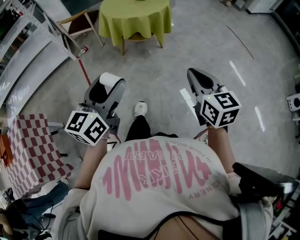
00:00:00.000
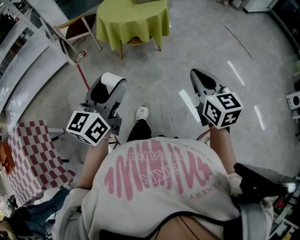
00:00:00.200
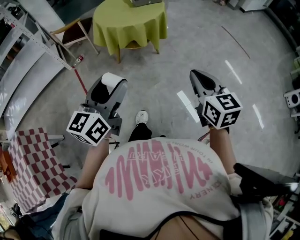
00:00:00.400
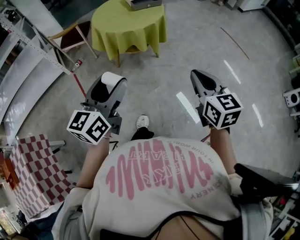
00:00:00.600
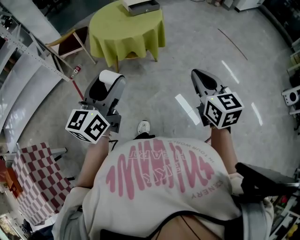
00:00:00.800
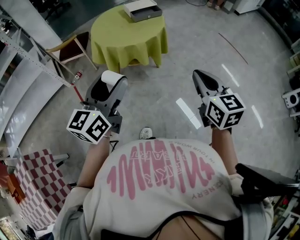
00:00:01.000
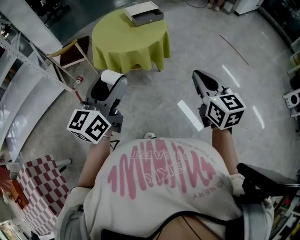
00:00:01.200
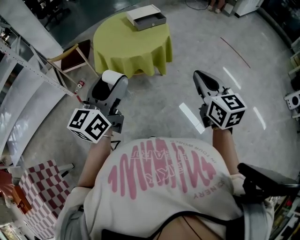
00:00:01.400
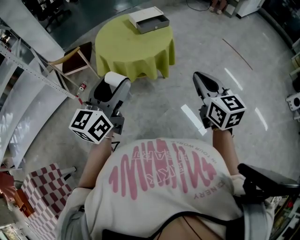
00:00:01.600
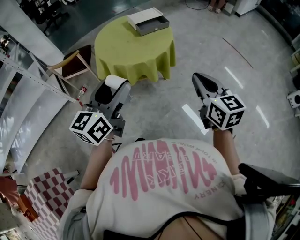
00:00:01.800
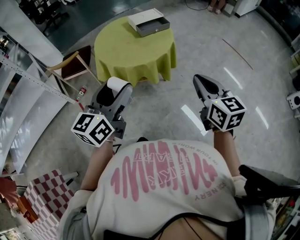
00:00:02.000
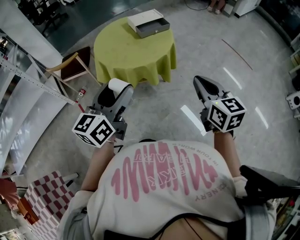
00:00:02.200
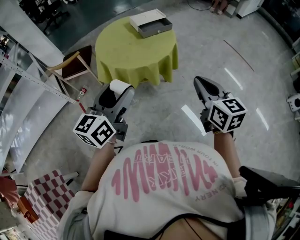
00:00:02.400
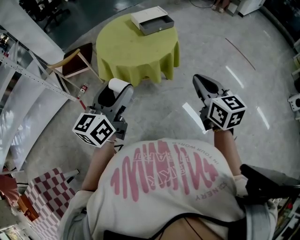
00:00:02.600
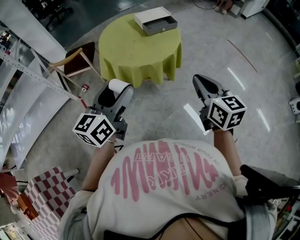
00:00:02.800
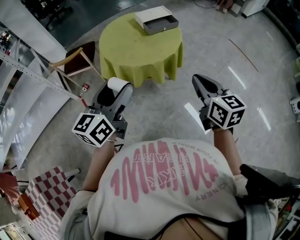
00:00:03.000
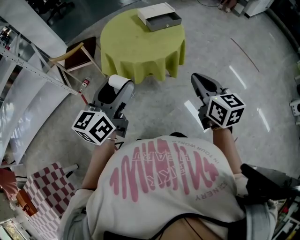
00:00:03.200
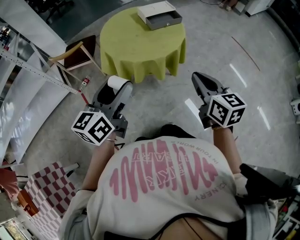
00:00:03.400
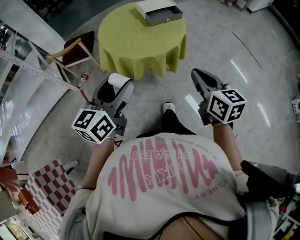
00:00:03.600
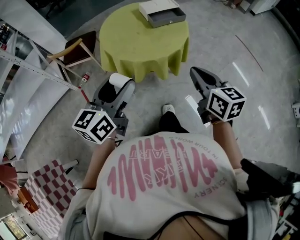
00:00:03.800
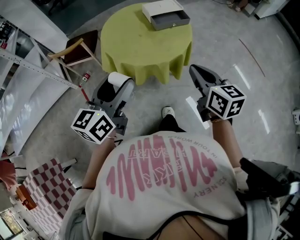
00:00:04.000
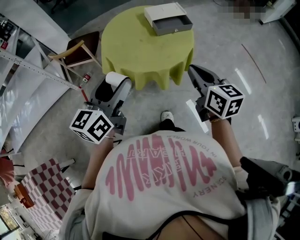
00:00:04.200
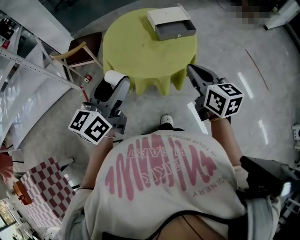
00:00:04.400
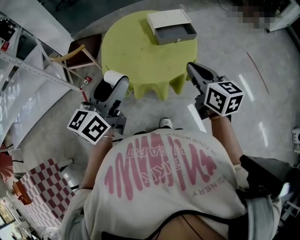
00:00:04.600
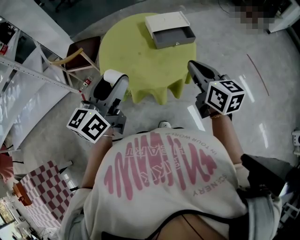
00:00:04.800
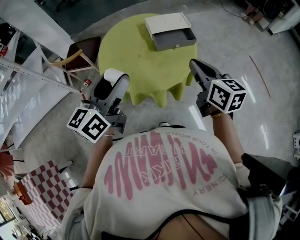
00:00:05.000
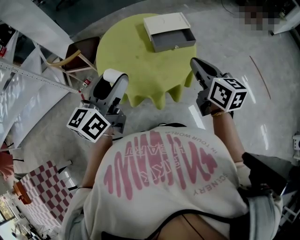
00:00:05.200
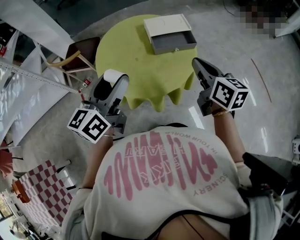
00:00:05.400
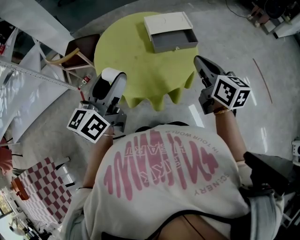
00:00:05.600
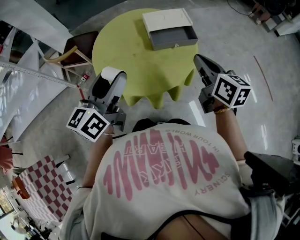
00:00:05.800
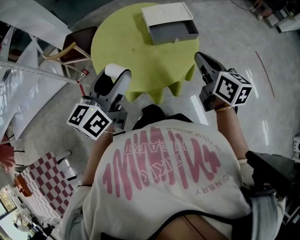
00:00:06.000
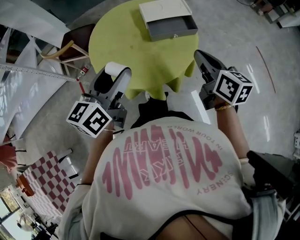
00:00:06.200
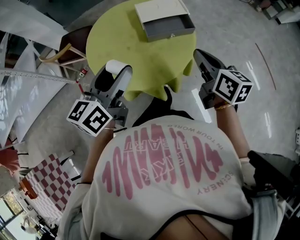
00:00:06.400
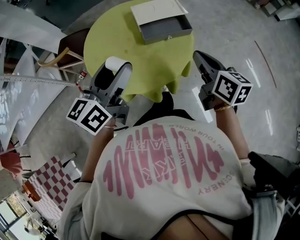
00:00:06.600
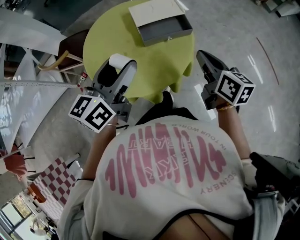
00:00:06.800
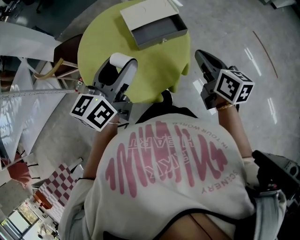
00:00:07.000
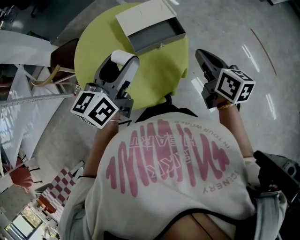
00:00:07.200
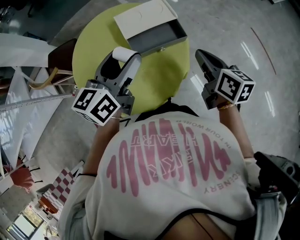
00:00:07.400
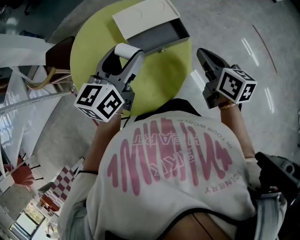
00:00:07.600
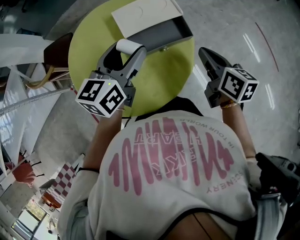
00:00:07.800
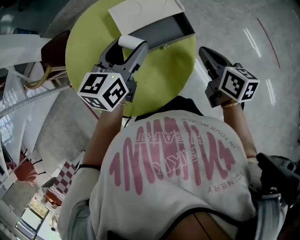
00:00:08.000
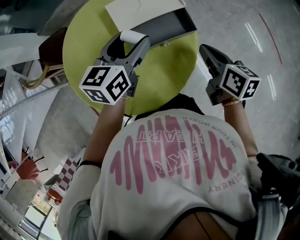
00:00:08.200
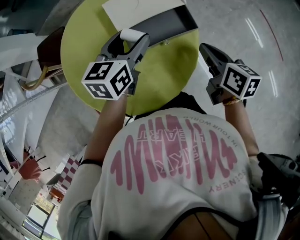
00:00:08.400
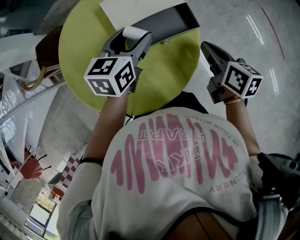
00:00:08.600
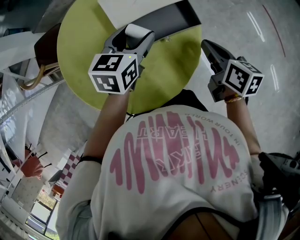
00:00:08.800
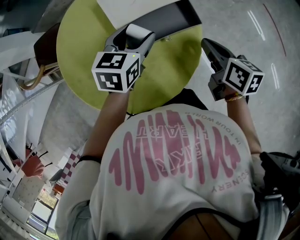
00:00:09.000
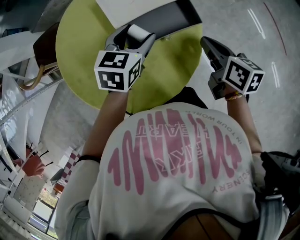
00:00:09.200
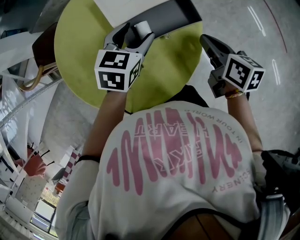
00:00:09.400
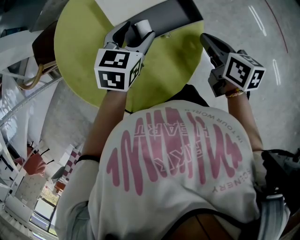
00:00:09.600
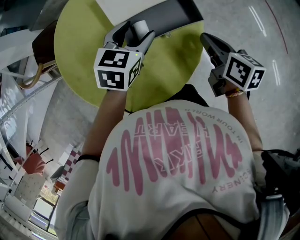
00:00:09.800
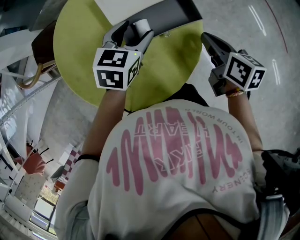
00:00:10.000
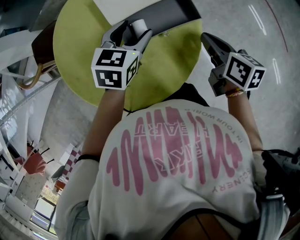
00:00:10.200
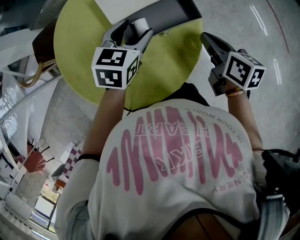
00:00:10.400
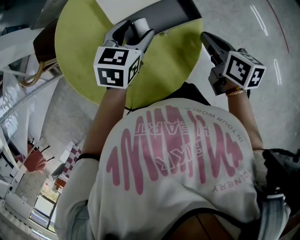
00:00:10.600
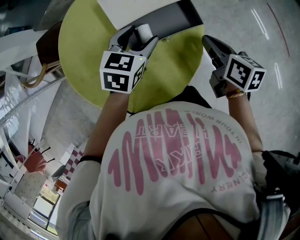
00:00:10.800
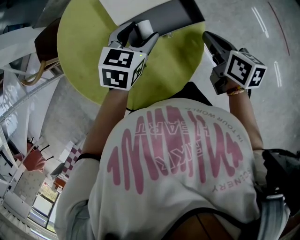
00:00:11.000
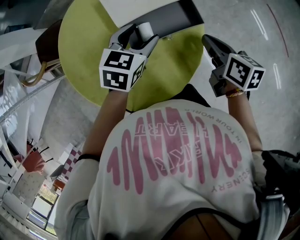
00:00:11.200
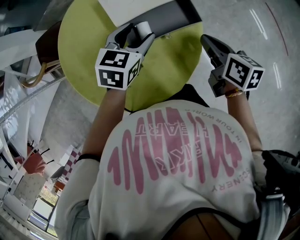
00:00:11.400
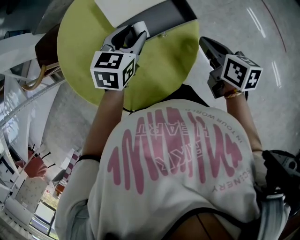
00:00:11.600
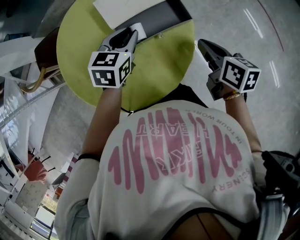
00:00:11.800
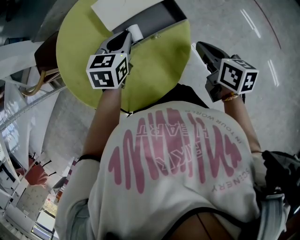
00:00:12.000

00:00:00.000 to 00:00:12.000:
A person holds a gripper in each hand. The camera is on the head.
00:00:00.000 to 00:00:01.600: Both grippers move forward, roughly 30 cm.
00:00:01.600 to 00:00:03.000: The two grippers go about 5 cm forward.
00:00:03.000 to 00:00:04.400: Both grippers travel together forward, roughly 15 cm.
00:00:04.400 to 00:00:06.000: Both grippers move forward and to the right, about 15 cm.
00:00:06.000 to 00:00:07.600: The left gripper goes roughly 25 cm forward and to the right; the right gripper goes some 20 cm forward, downward and to the right.
00:00:07.600 to 00:00:09.000: The right gripper is displaced downward by some 10 cm; the left gripper moves downward and forward, roughly 15 cm, and rotates about 30 degrees.
00:00:09.000 to 00:00:10.400: The grippers move only a little.
00:00:10.400 to 00:00:12.000: The left gripper closes up.

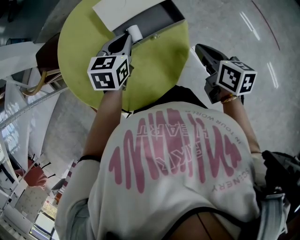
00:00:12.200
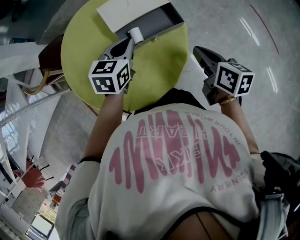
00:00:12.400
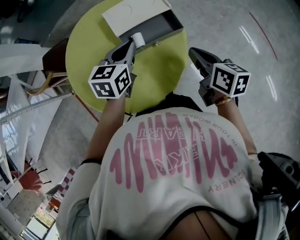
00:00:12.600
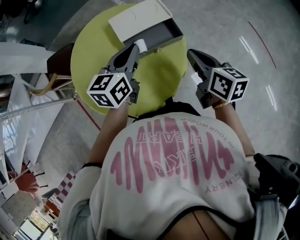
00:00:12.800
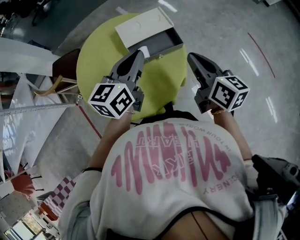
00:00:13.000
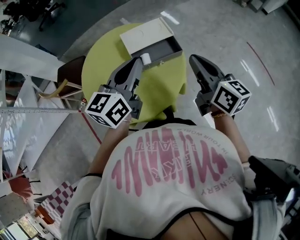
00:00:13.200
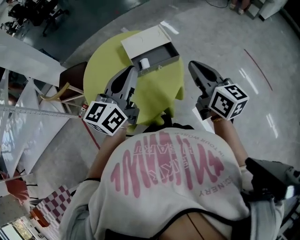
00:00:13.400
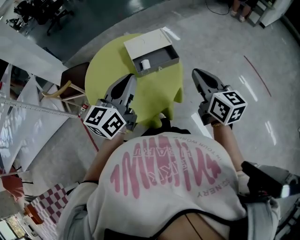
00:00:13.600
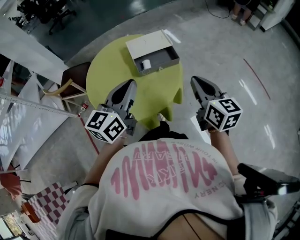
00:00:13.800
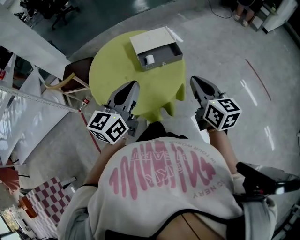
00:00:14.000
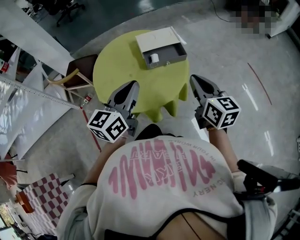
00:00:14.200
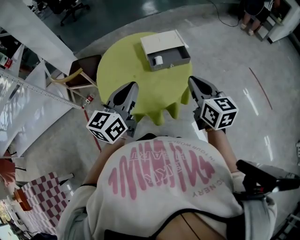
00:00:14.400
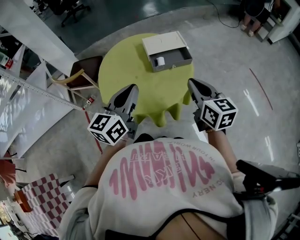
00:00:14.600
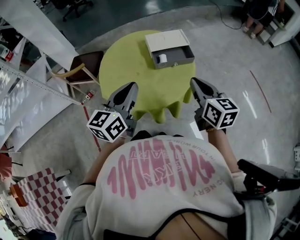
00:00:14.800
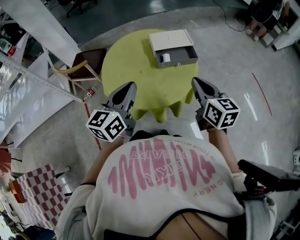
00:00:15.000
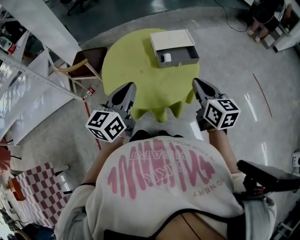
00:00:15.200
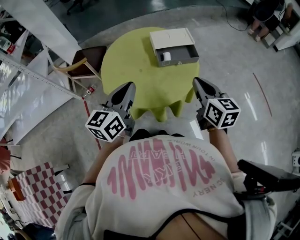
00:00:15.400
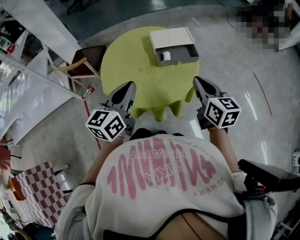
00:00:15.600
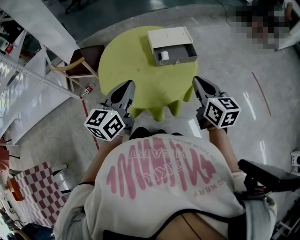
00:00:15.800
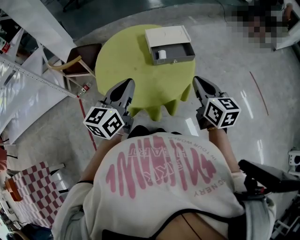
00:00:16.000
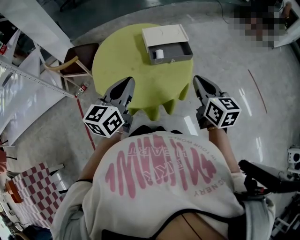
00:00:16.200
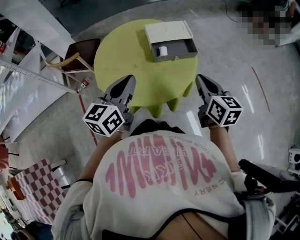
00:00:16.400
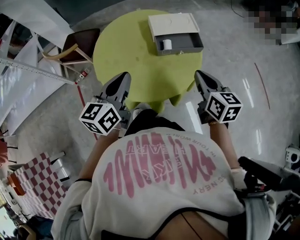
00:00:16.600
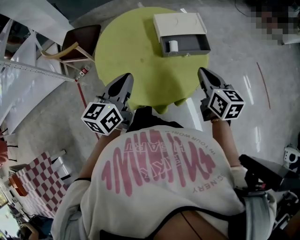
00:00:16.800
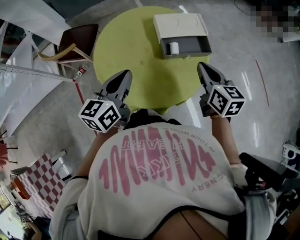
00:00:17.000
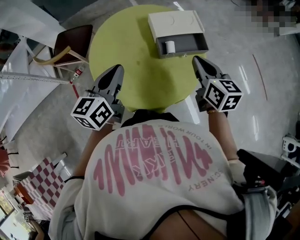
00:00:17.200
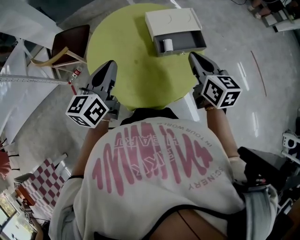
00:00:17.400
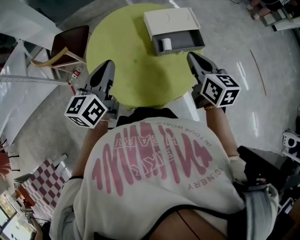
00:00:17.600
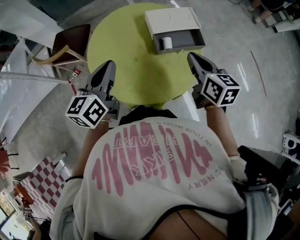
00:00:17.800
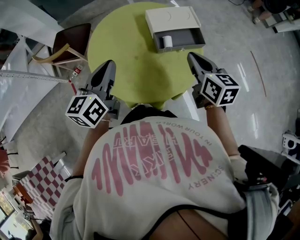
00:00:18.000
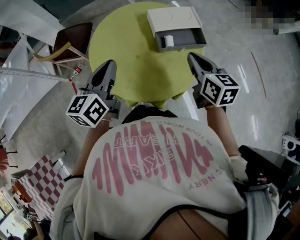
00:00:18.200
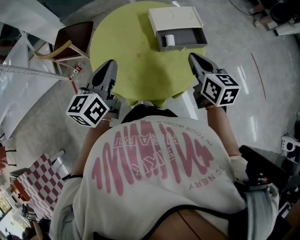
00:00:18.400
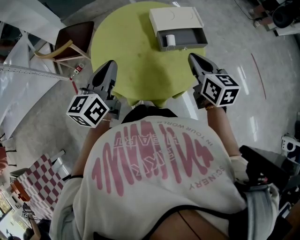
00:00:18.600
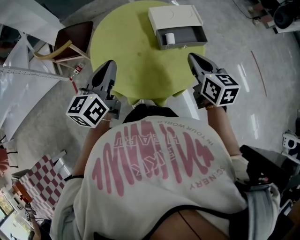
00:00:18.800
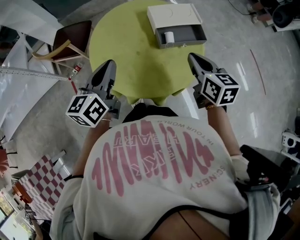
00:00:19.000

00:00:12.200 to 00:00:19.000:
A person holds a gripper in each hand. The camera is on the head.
00:00:12.200 to 00:00:13.600: The two grippers go approximately 25 cm upward and backward. The left gripper angles its fingers upward, by roughly 40 degrees. The right gripper turns by approximately 30 degrees.
00:00:13.600 to 00:00:15.000: The two grippers go roughly 10 cm to the left and backward.
00:00:15.000 to 00:00:16.200: The grippers stay close to where they were, moving slightly.
00:00:16.200 to 00:00:17.600: The grippers both shift forward and to the left by some 15 cm.
00:00:17.600 to 00:00:19.000: The grippers make only small movements.

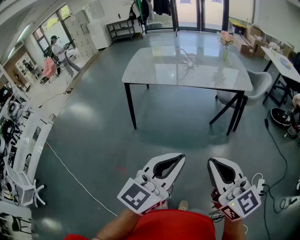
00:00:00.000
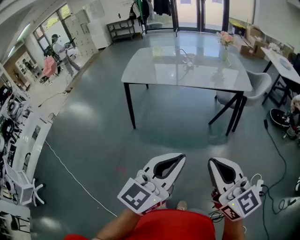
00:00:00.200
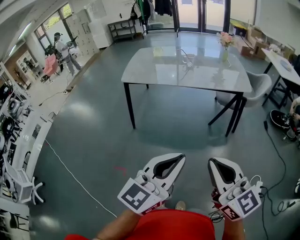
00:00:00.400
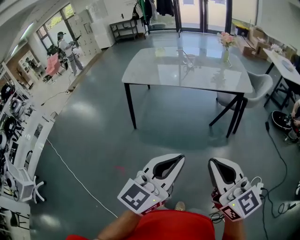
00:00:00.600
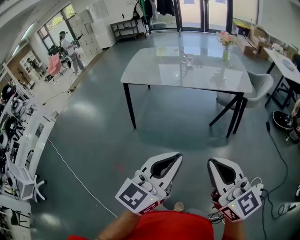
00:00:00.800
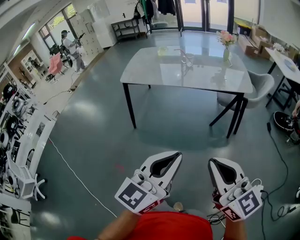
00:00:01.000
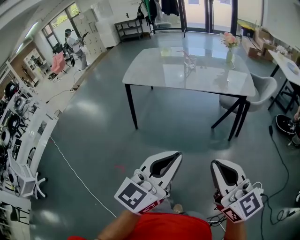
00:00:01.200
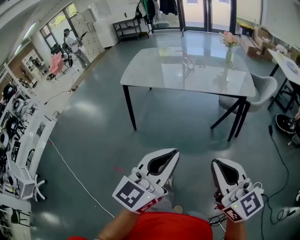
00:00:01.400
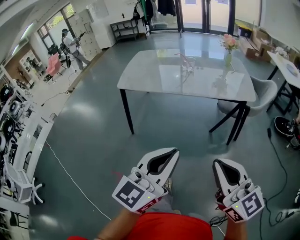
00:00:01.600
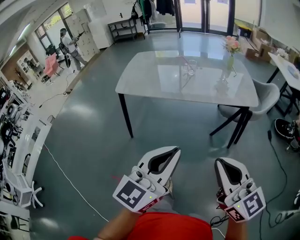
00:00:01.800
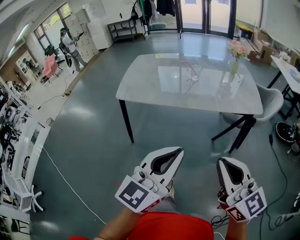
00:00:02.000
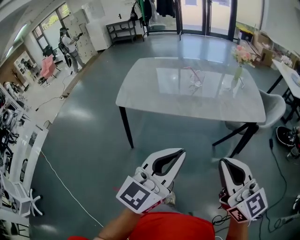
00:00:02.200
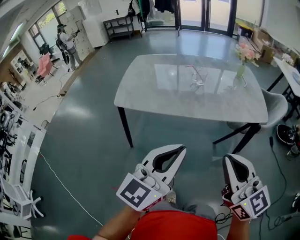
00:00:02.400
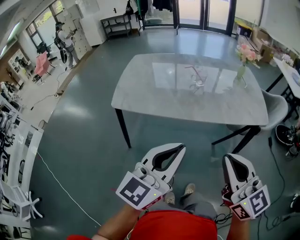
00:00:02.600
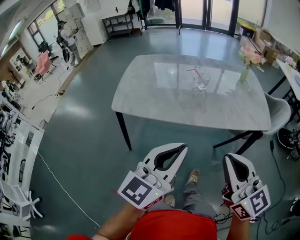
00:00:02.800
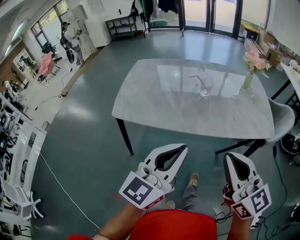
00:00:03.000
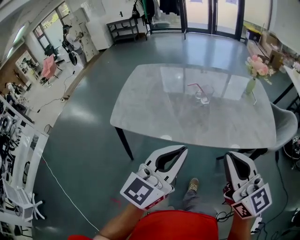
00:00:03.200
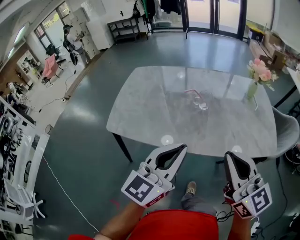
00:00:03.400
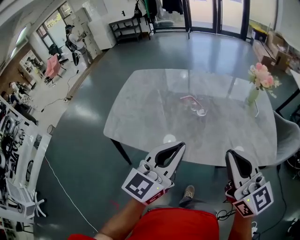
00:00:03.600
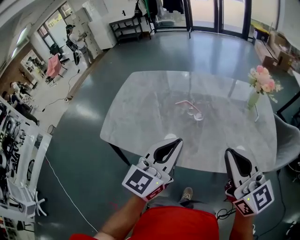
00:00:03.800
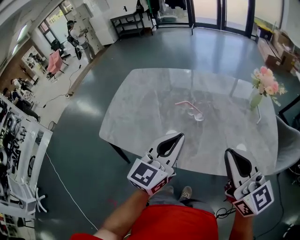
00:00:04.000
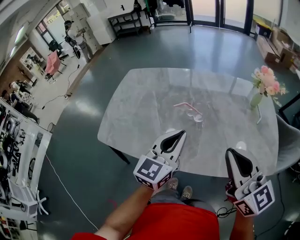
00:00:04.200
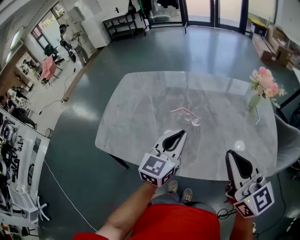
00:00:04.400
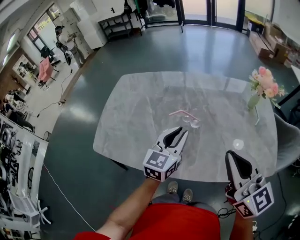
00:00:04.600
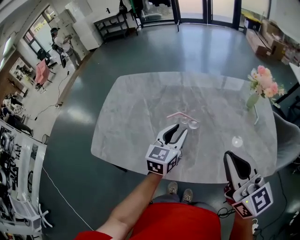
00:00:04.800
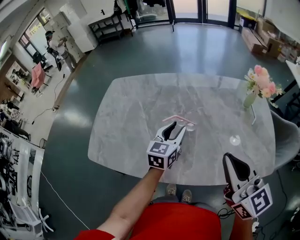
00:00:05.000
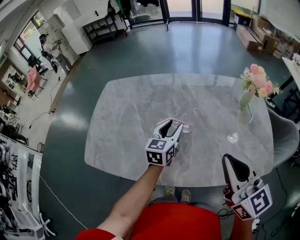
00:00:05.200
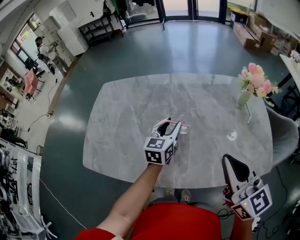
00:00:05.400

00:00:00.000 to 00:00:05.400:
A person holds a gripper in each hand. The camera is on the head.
00:00:00.000 to 00:00:01.400: The left gripper is displaced forward by some 5 cm; the right gripper shifts some 10 cm to the right and forward.
00:00:01.400 to 00:00:02.800: Both grippers travel together forward, approximately 30 cm.
00:00:02.800 to 00:00:04.000: The two grippers go some 30 cm forward.
00:00:04.000 to 00:00:05.400: The left gripper travels forward and downward by some 25 cm, and opens up; the right gripper heads forward, covering some 10 cm.
